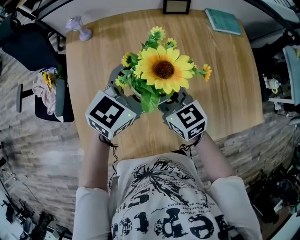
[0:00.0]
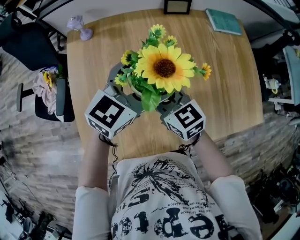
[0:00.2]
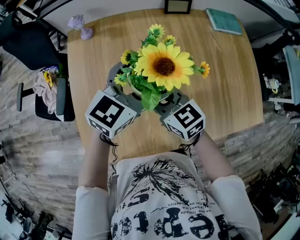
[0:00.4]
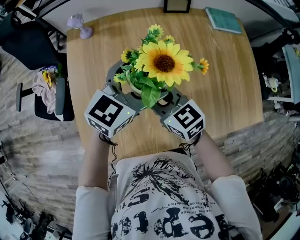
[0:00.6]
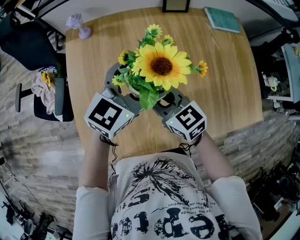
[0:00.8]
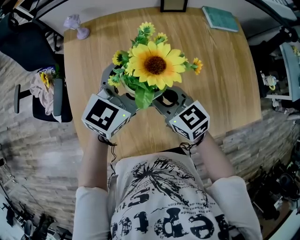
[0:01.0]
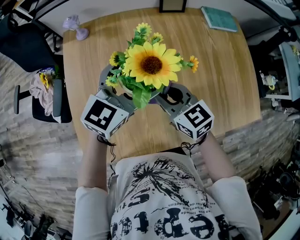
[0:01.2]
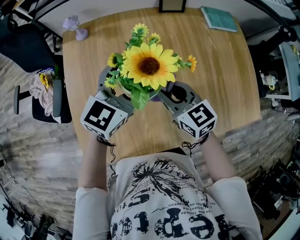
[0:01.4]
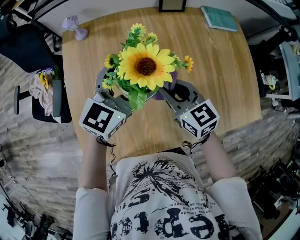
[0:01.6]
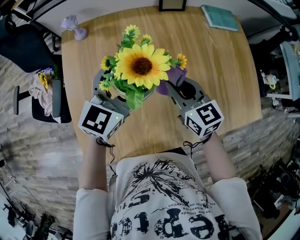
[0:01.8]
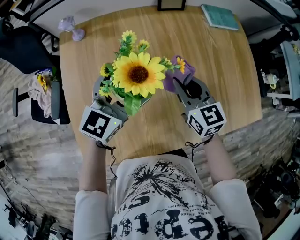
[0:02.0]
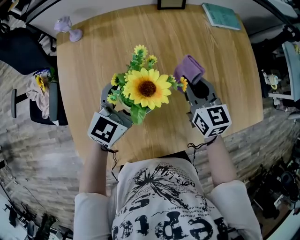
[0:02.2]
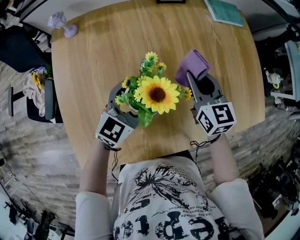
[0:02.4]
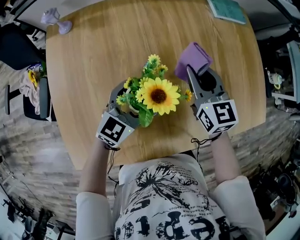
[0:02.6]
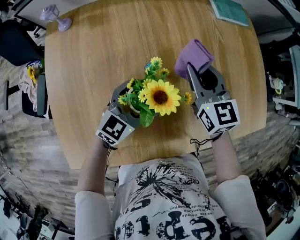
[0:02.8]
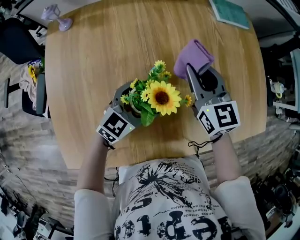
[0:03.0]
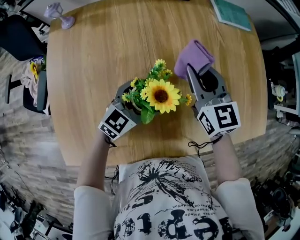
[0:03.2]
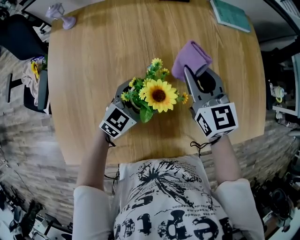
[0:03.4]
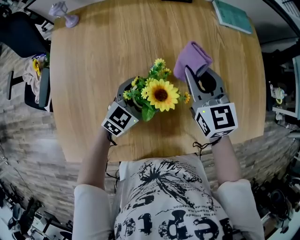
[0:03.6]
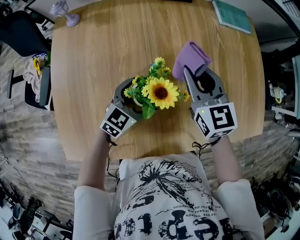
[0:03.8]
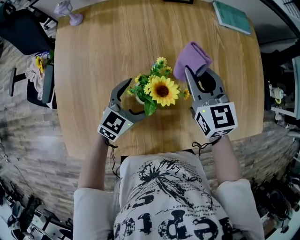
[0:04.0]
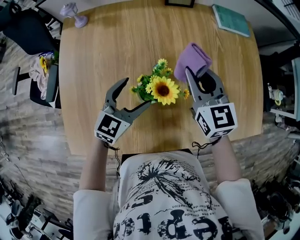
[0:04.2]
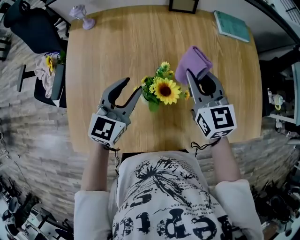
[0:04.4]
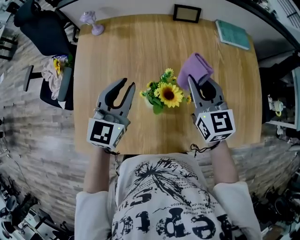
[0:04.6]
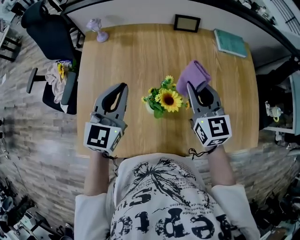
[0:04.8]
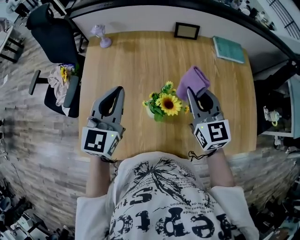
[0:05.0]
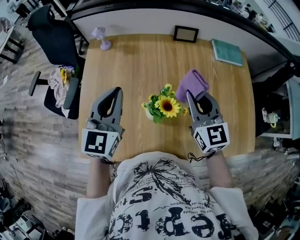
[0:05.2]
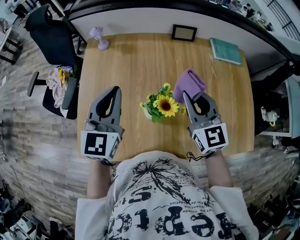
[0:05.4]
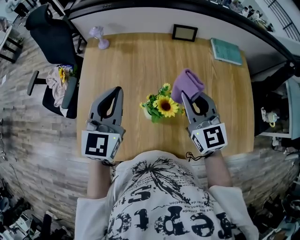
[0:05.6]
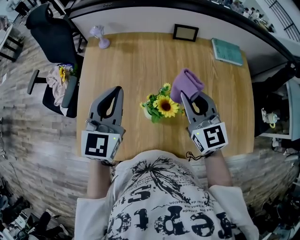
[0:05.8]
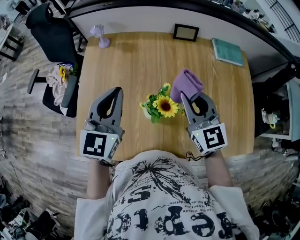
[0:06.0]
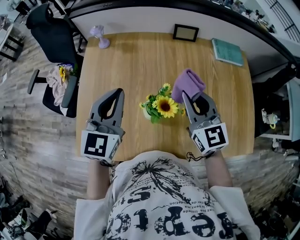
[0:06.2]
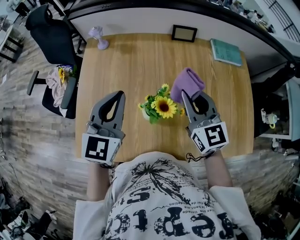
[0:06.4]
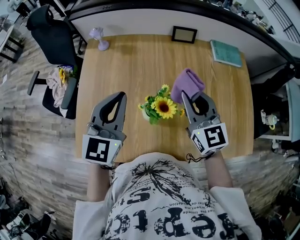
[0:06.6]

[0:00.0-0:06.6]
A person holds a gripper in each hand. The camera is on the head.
0:00.0 to 0:01.6: The right gripper shifts approximately 5 cm to the right.
0:01.6 to 0:03.2: The right gripper is displaced to the right and forward by roughly 15 cm. The left gripper is displaced downward and to the right by roughly 25 cm.
0:03.2 to 0:05.0: The left gripper moves upward and to the left, some 30 cm, rotates about 40 degrees, and closes up; the right gripper shifts roughly 15 cm upward and backward.
0:05.0 to 0:06.6: The grippers move only a little.

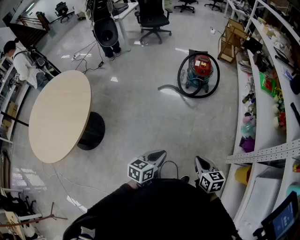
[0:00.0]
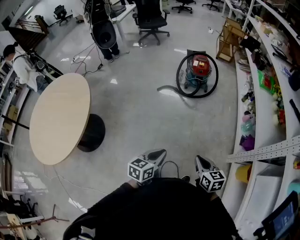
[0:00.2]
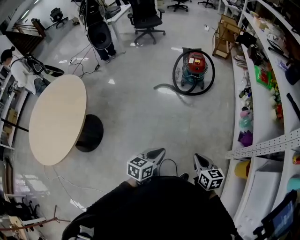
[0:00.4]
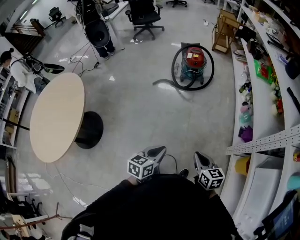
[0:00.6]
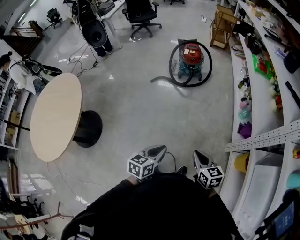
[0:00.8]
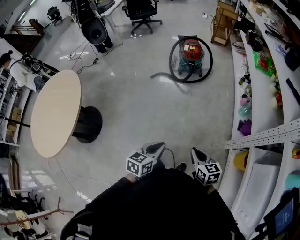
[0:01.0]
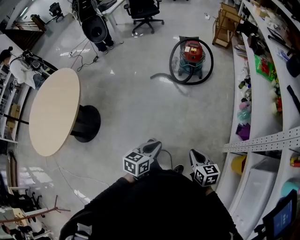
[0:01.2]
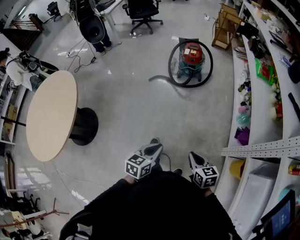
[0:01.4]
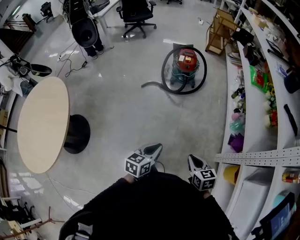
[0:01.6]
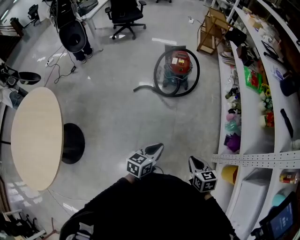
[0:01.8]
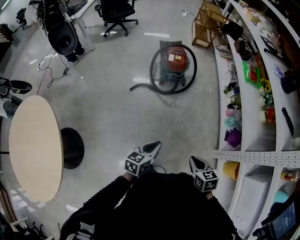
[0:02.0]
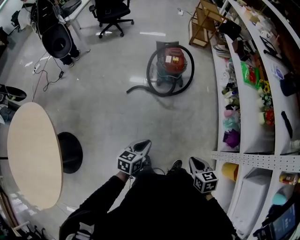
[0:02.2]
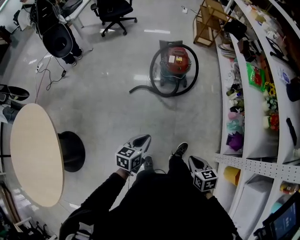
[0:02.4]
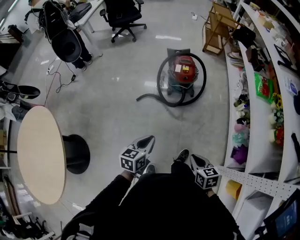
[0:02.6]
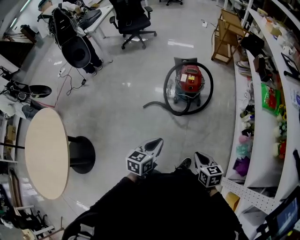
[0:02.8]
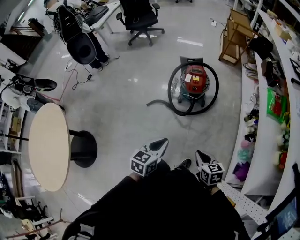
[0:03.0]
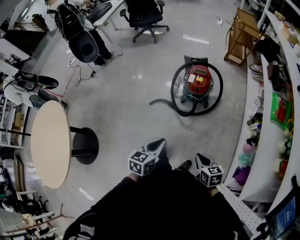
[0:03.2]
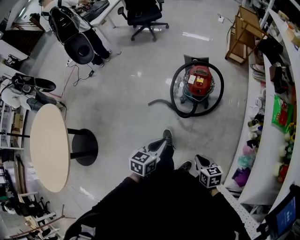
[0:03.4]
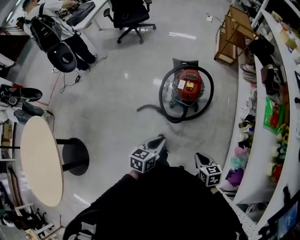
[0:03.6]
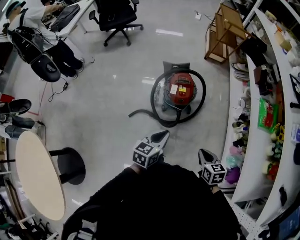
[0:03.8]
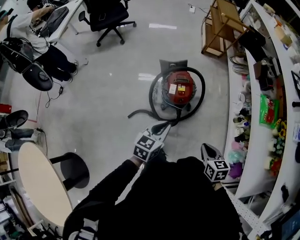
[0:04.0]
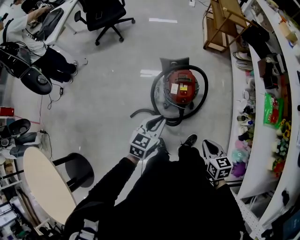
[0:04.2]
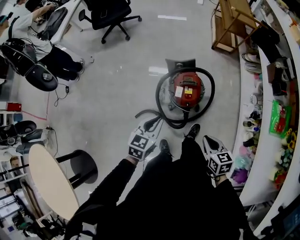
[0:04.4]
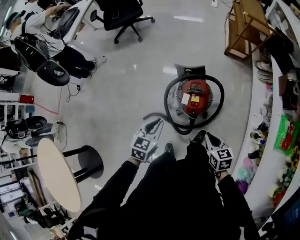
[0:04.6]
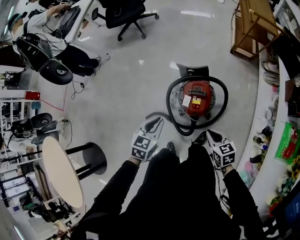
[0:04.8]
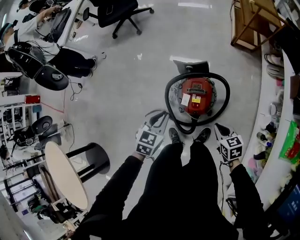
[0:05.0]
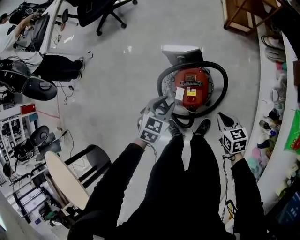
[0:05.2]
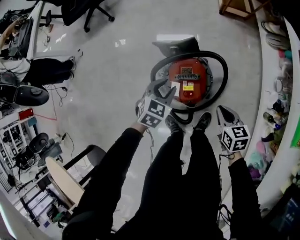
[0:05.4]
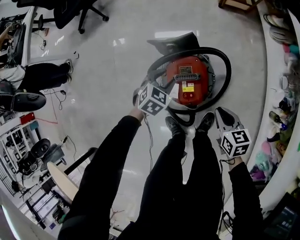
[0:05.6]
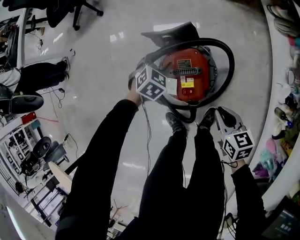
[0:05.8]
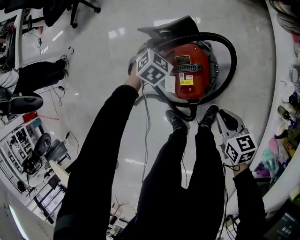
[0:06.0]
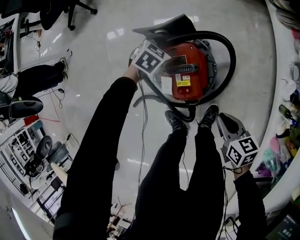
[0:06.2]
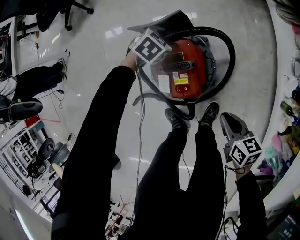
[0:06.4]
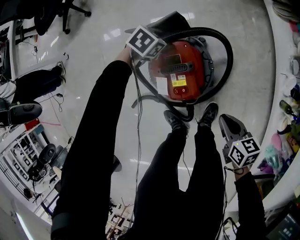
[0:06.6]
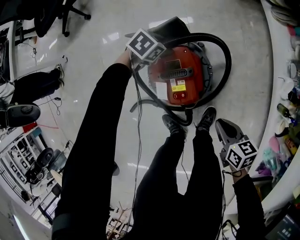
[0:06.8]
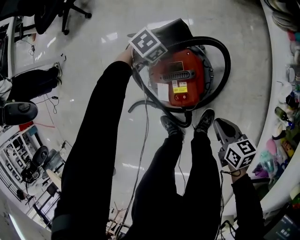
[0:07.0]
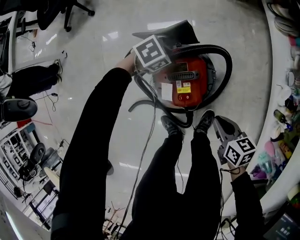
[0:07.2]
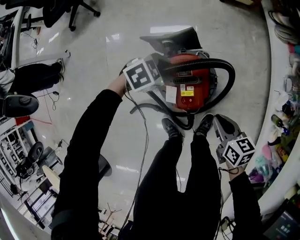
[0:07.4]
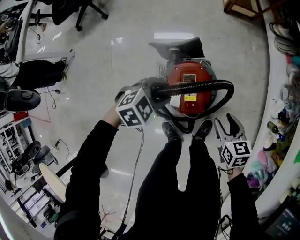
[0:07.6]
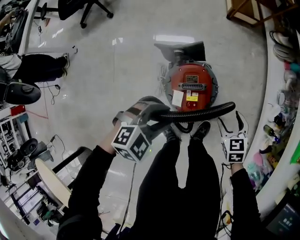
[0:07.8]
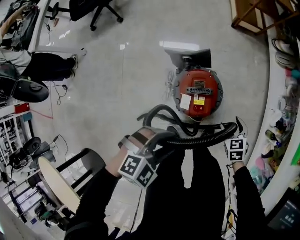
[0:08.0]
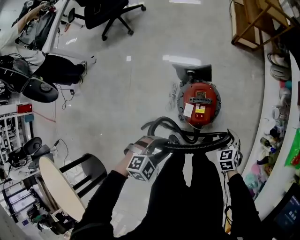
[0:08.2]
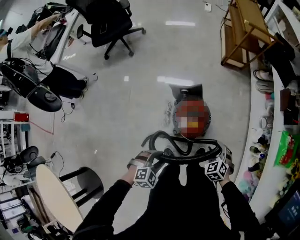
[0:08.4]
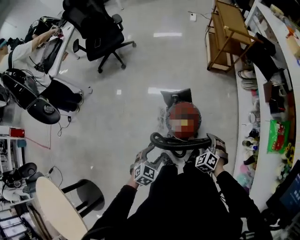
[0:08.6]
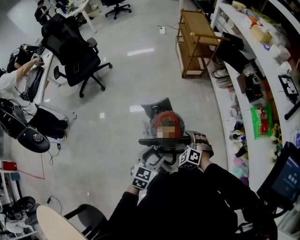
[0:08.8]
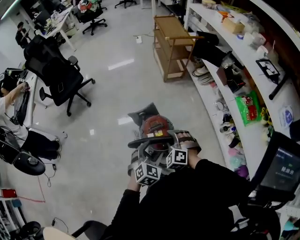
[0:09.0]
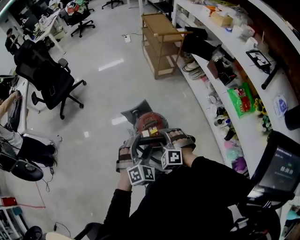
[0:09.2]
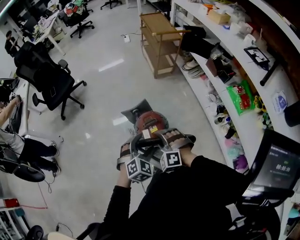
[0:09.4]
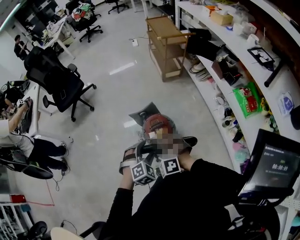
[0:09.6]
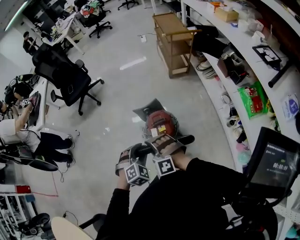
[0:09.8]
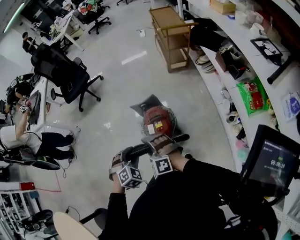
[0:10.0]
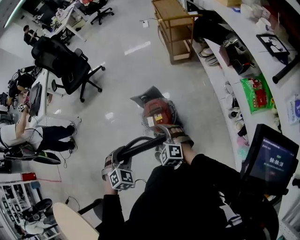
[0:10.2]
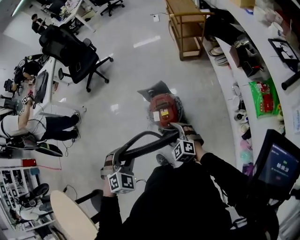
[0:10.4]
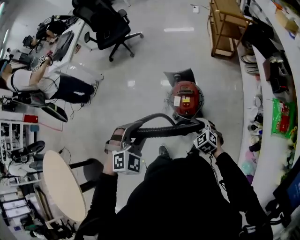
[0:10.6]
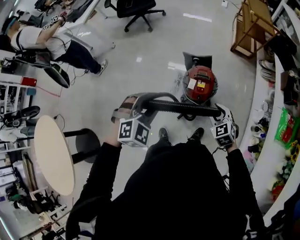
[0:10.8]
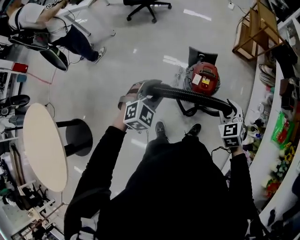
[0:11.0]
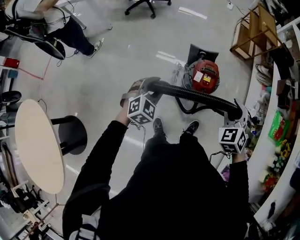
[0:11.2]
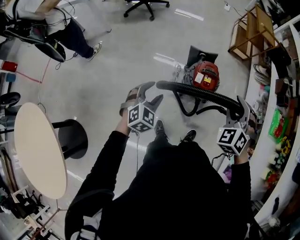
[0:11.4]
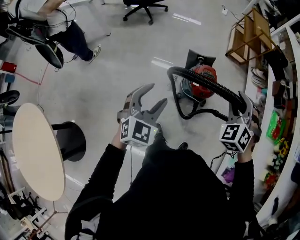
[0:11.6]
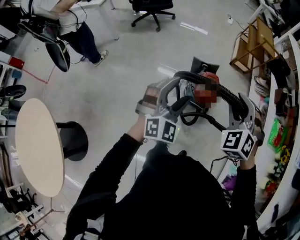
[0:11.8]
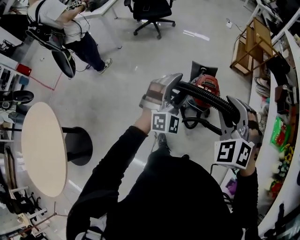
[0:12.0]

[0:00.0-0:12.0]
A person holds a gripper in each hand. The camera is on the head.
0:00.0 to 0:01.6: The right gripper travels to the right and forward by approximately 15 cm, while the left gripper travels forward and to the right by about 15 cm.
0:01.6 to 0:03.0: The two grippers go approximately 40 cm forward.
0:03.0 to 0:04.4: The two grippers travel together, forward, about 40 cm.
0:04.4 to 0:06.0: The grippers both shift downward and forward by about 50 cm. The left gripper swivels some 50 degrees, and opens up.
0:06.0 to 0:07.6: The right gripper changes place by approximately 5 cm, and opens, while the left gripper travels upward by some 10 cm, and rotates approximately 20 degrees.
0:07.6 to 0:09.0: The right gripper shifts some 30 cm upward, and rotates around the line of its fingers by some 70 degrees, counterclockwise from behind; the left gripper goes some 35 cm upward and backward, and rotates approximately 30 degrees.
0:09.0 to 0:10.4: The right gripper shifts by about 10 cm, turns by about 30 degrees, and opens its fingers, while the left gripper changes place by about 15 cm, swivels roughly 30 degrees, and closes its fingers.
0:10.4 to 0:12.0: The right gripper heads upward, to the left and backward, covering approximately 40 cm, turns by some 30 degrees, and closes its fingers; the left gripper moves to the left, upward and backward, some 15 cm, tilts its fingers some 40 degrees upward, and opens its fingers.

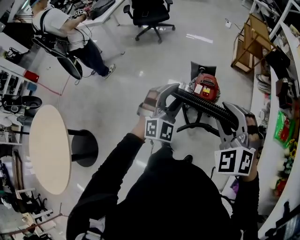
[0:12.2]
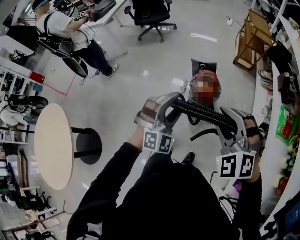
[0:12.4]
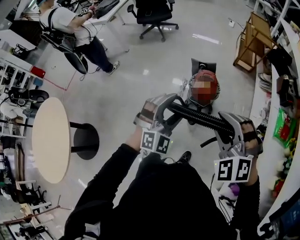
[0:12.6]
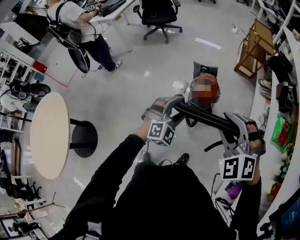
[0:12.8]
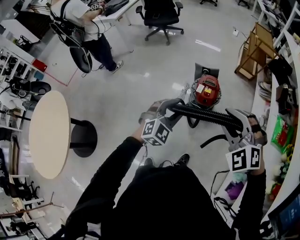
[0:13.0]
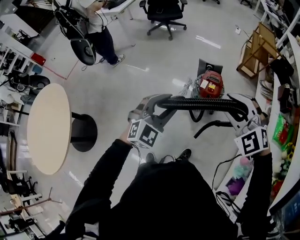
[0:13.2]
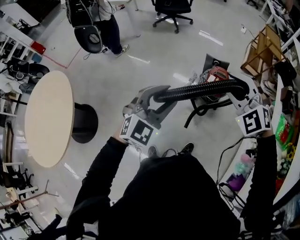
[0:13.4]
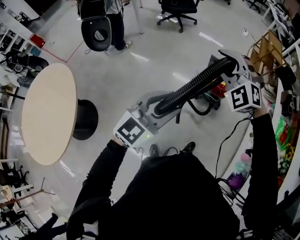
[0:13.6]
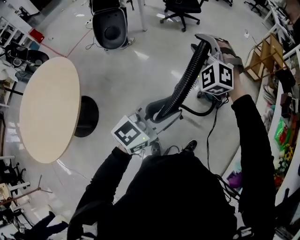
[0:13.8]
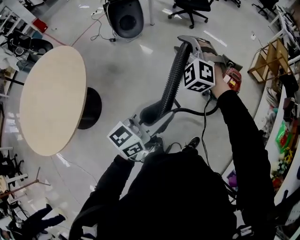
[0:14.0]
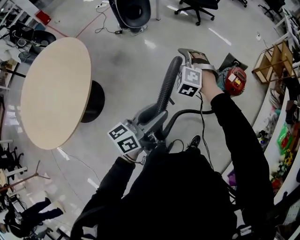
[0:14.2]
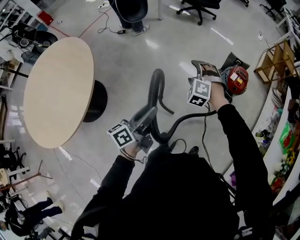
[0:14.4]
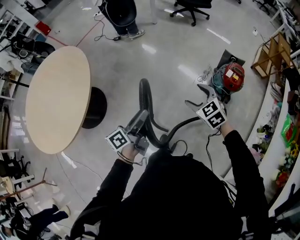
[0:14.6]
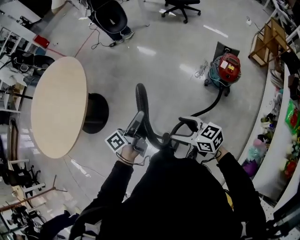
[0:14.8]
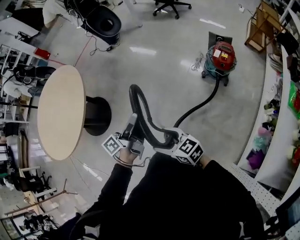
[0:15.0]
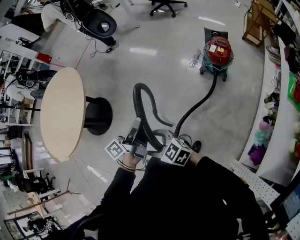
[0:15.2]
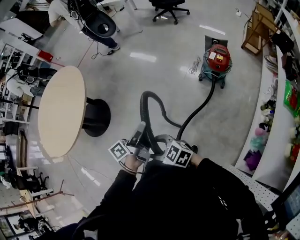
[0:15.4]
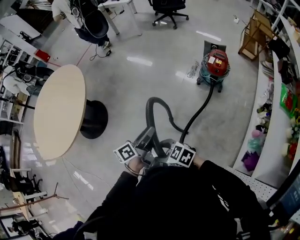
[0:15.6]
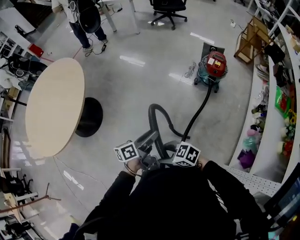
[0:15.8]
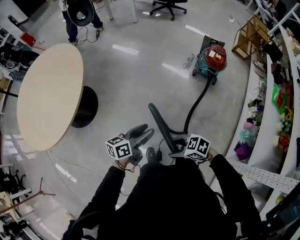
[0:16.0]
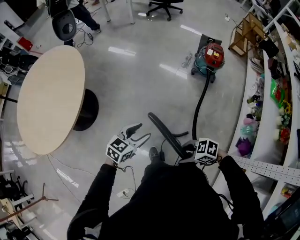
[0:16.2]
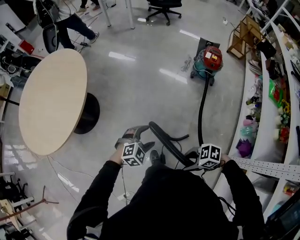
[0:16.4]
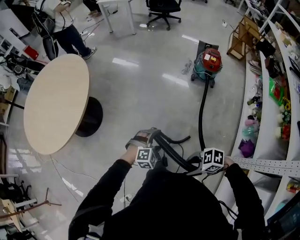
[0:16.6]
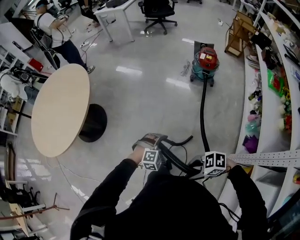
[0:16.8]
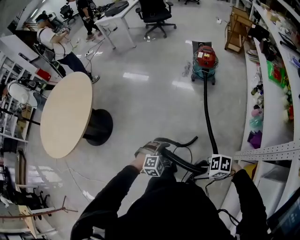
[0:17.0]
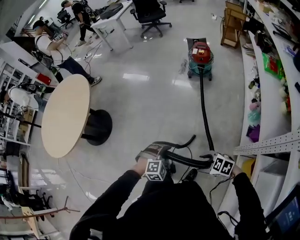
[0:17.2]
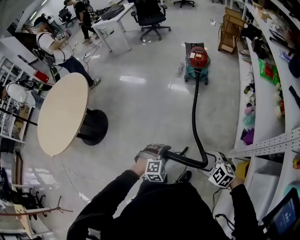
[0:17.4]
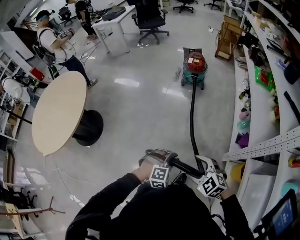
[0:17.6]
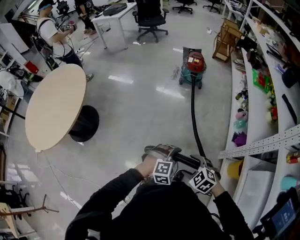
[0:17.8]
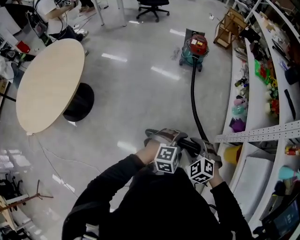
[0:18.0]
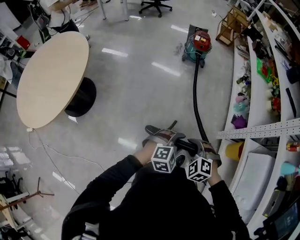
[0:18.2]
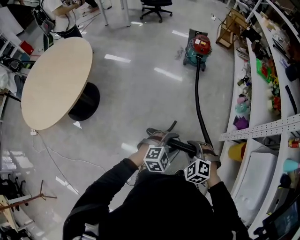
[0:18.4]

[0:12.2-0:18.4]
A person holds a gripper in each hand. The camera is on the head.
0:12.2 to 0:13.8: The right gripper shifts about 40 cm to the left, and changes its angle by about 30 degrees. The left gripper heads backward and to the left, covering approximately 40 cm, and rotates around the line of its fingers by approximately 60 degrees, counterclockwise from behind.
0:13.8 to 0:15.4: The left gripper shifts by roughly 25 cm, and rolls counterclockwise, seen from behind, by about 60 degrees; the right gripper swings up and down, about 25 cm each way, with 2 reversals, swivels about 80 degrees, and opens.
0:15.4 to 0:16.8: The right gripper ends up approximately 30 cm from where it was, and rotates about 30 degrees; the left gripper shifts by about 30 cm, and twists roughly 120 degrees clockwise, seen from behind.
0:16.8 to 0:18.4: The left gripper moves approximately 25 cm, and turns by some 20 degrees; the right gripper moves up and down over roughly 10 cm, changing direction 2 times, and swivels roughly 70 degrees.
